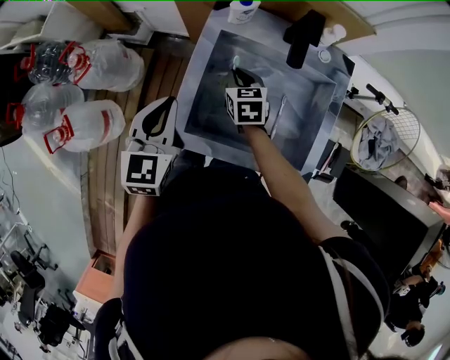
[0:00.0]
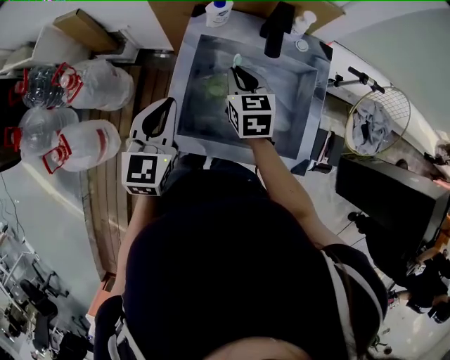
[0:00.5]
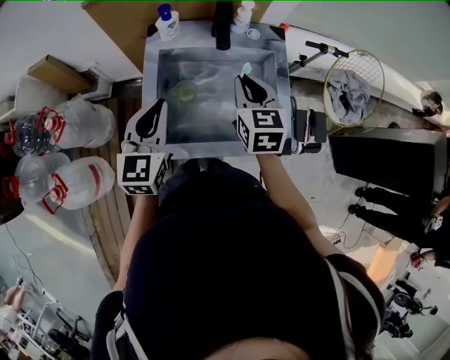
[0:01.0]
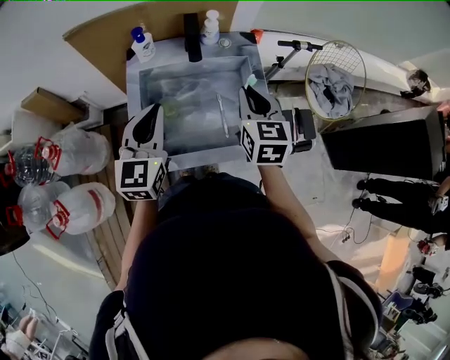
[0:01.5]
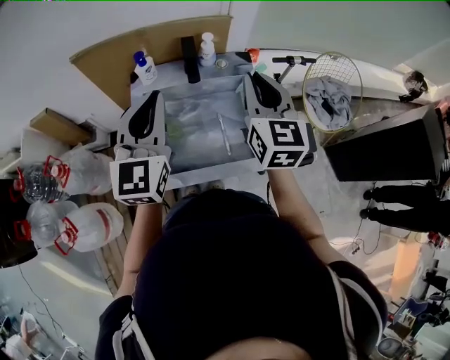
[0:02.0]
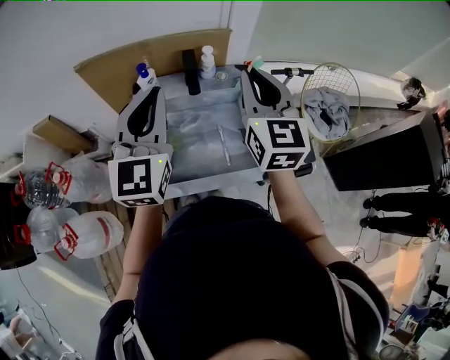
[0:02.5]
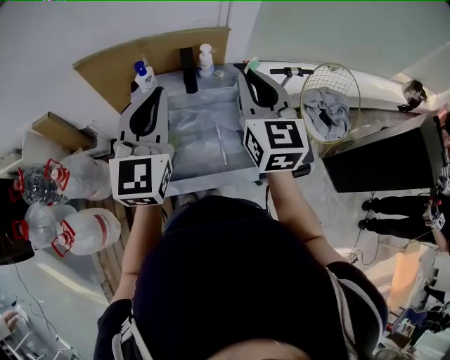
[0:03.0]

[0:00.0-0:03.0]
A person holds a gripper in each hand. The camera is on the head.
0:00.0 to 0:01.5: The left gripper shifts by roughly 15 cm, and rotates approximately 20 degrees; the right gripper shifts by about 30 cm, and changes its angle by approximately 30 degrees.
0:01.5 to 0:03.0: The two grippers go approximately 15 cm upward. The right gripper rotates about 20 degrees.

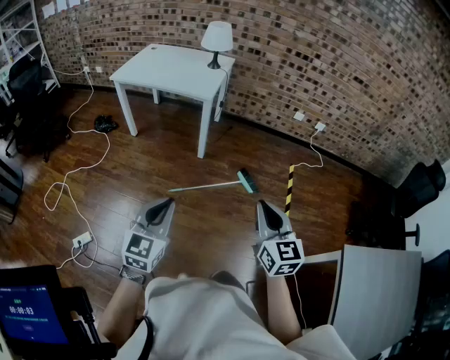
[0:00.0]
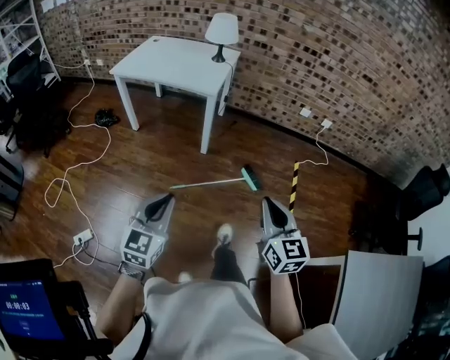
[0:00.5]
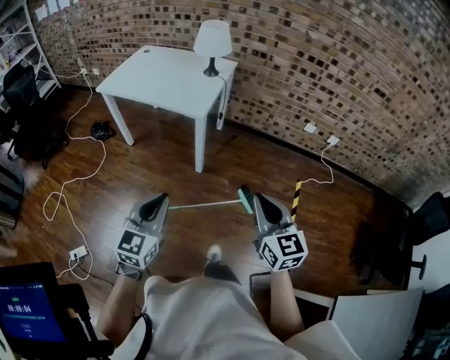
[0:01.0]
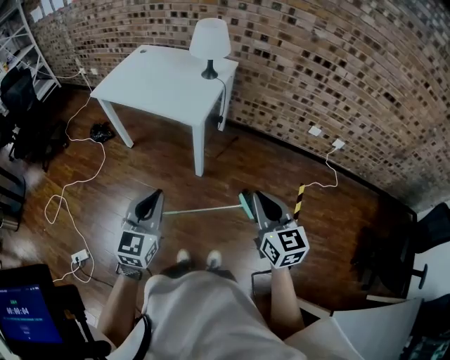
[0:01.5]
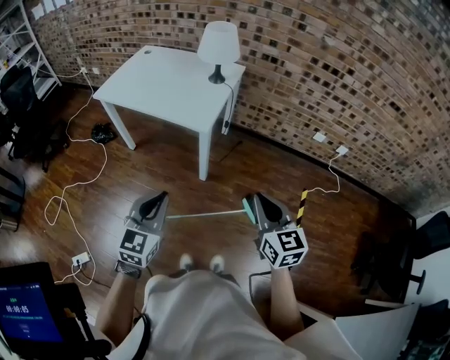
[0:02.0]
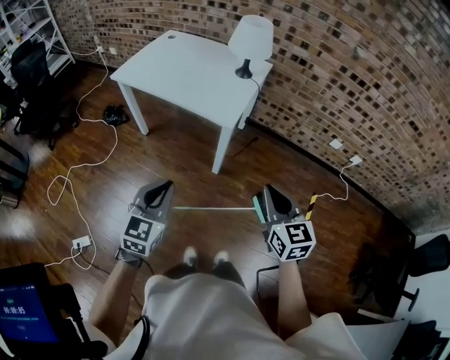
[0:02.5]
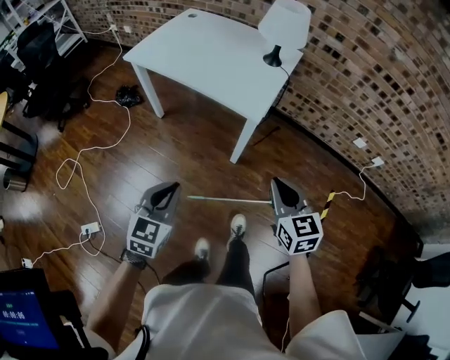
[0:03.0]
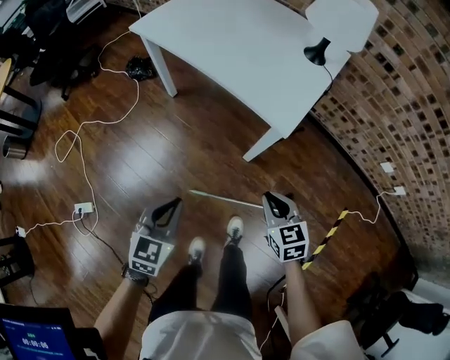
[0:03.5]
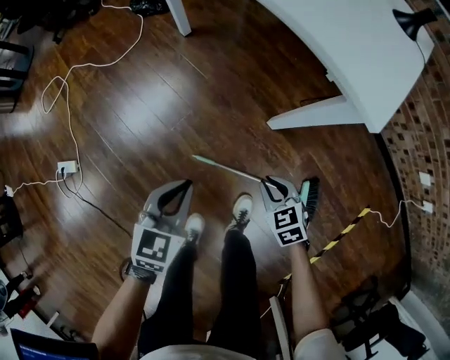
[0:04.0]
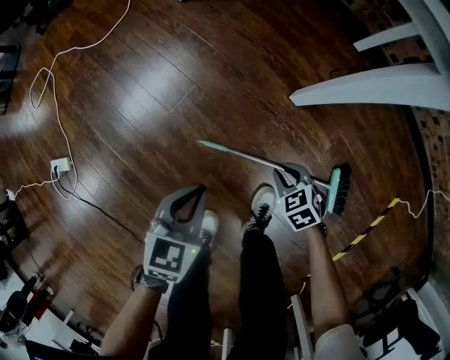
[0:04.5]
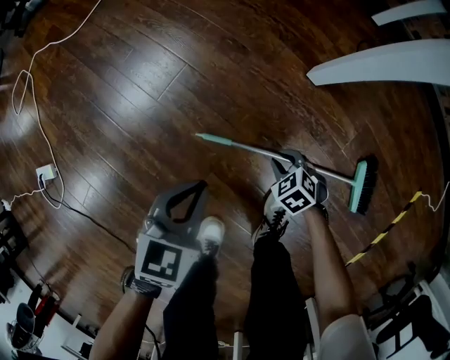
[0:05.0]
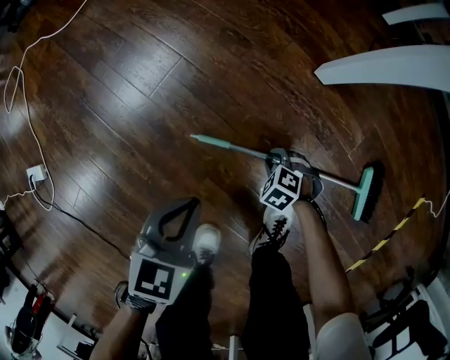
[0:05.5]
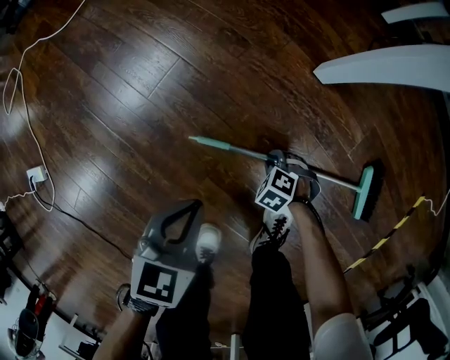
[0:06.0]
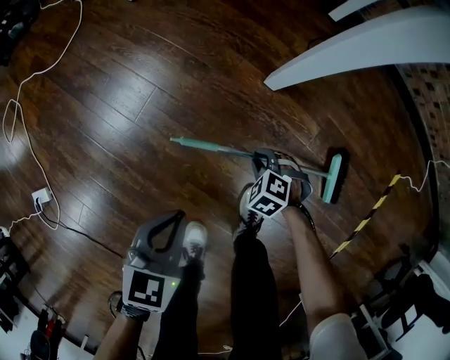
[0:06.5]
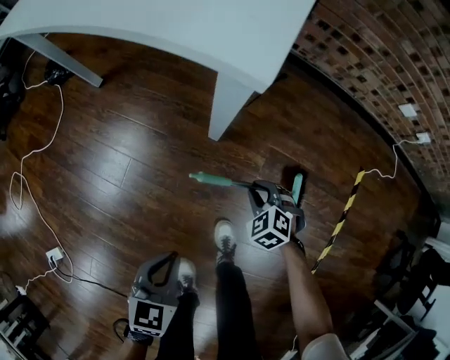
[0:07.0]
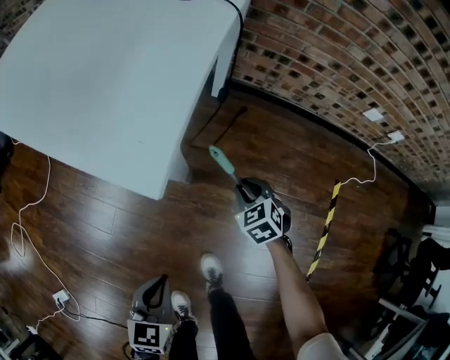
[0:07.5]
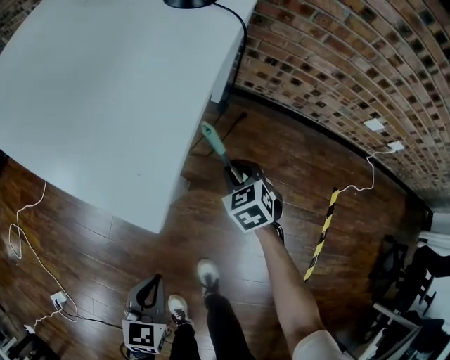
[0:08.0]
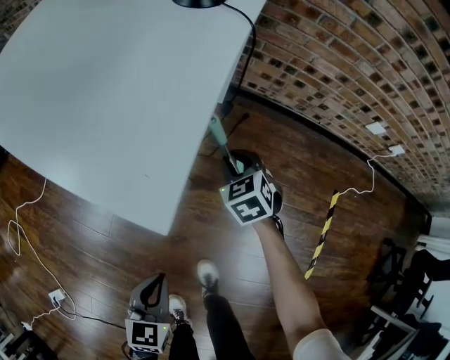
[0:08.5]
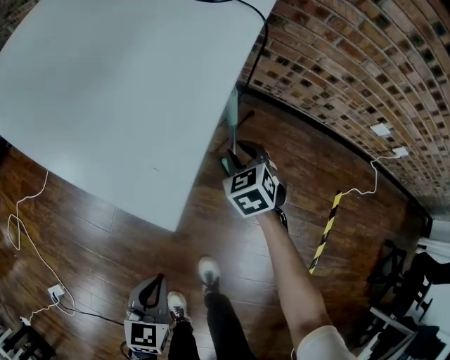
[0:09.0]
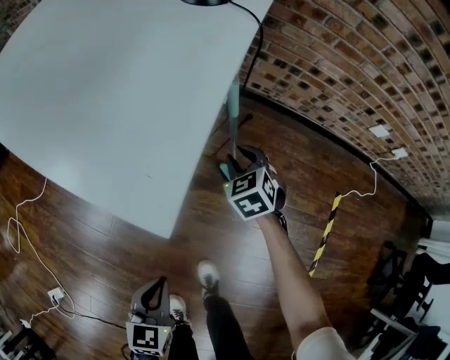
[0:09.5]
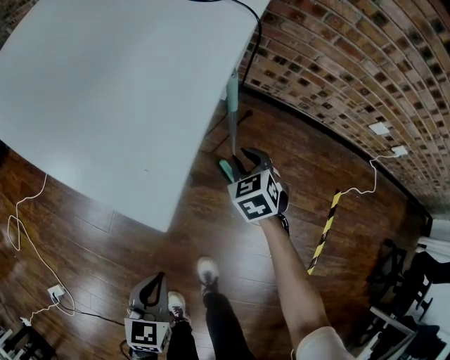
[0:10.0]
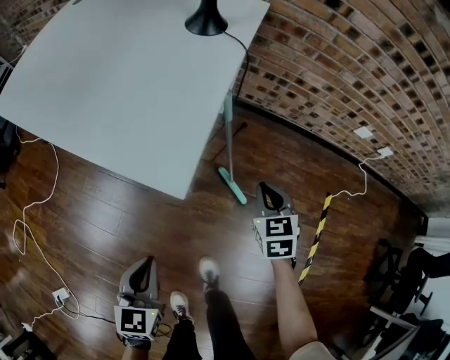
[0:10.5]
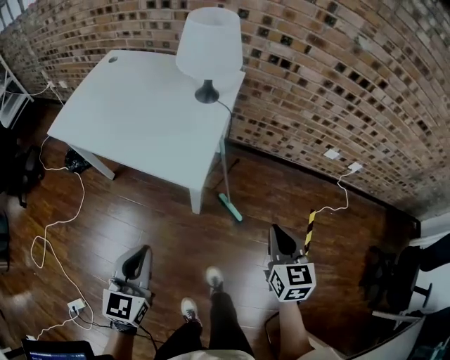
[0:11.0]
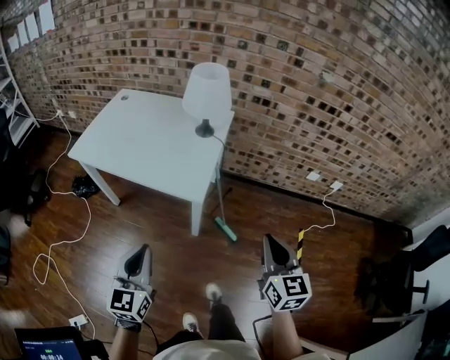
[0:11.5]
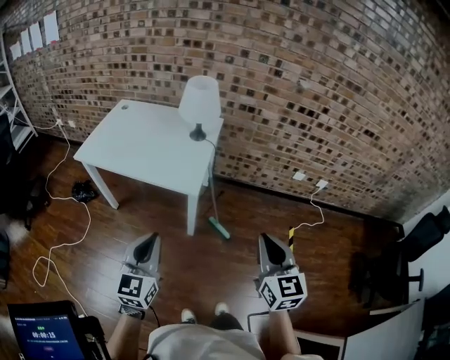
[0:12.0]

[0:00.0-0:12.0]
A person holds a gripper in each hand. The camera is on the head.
0:00.0 to 0:02.0: The two grippers go roughly 35 cm forward.
0:02.0 to 0:04.0: Both grippers move downward, about 50 cm. The left gripper rotates approximately 30 degrees, while the right gripper tips its fingers downward by approximately 40 degrees.
0:04.0 to 0:06.0: Both grippers move downward, roughly 40 cm. The right gripper tips its fingers downward by some 30 degrees.
0:06.0 to 0:08.0: The right gripper travels upward by roughly 50 cm, and points its fingers approximately 30 degrees further upward. The left gripper travels upward by about 30 cm.
0:08.0 to 0:10.0: There are only small adjustments of the grippers.
0:10.0 to 0:12.0: The left gripper moves upward, approximately 50 cm, and angles its fingers upward, by some 40 degrees, while the right gripper moves upward and backward, approximately 80 cm, tips its fingers upward by roughly 40 degrees, and closes up.

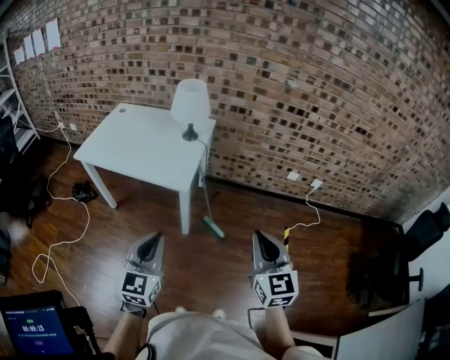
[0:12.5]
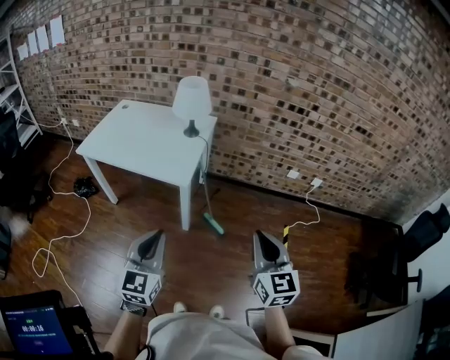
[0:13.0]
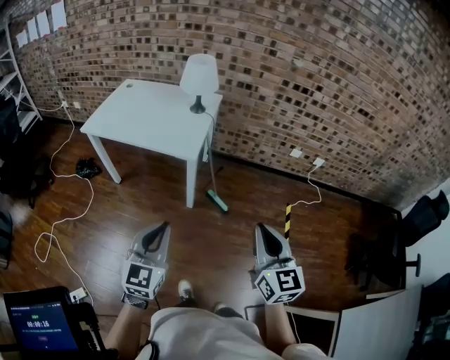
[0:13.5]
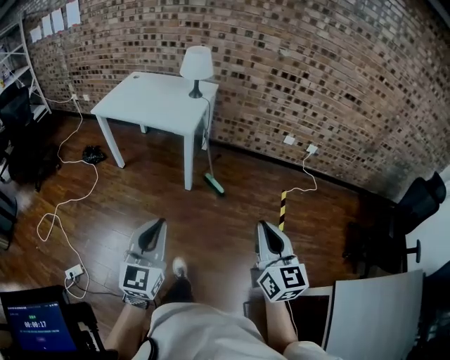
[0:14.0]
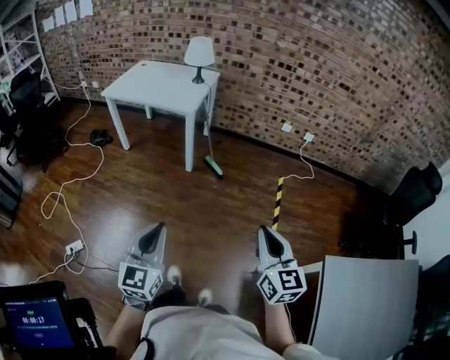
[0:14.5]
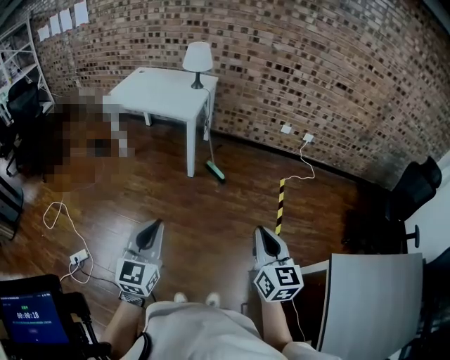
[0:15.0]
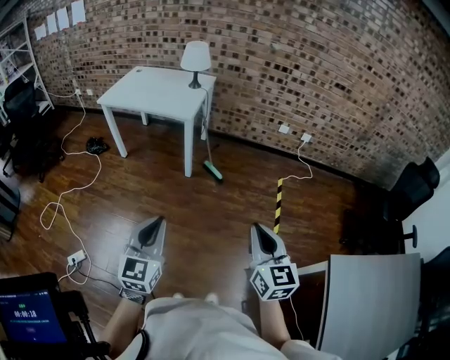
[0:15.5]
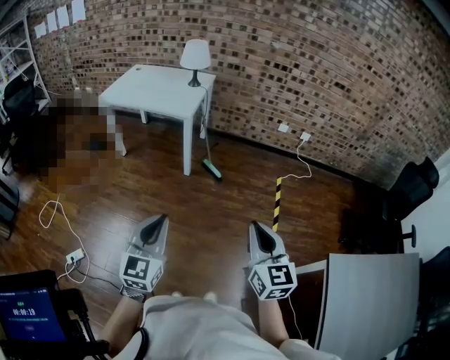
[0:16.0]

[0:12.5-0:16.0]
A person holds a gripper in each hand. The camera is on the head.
0:12.5 to 0:14.5: Both grippers are carried backward, about 50 cm.
0:14.5 to 0:16.0: The right gripper goes some 5 cm to the left; the left gripper moves some 5 cm.

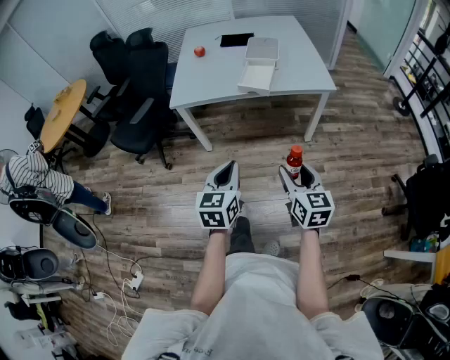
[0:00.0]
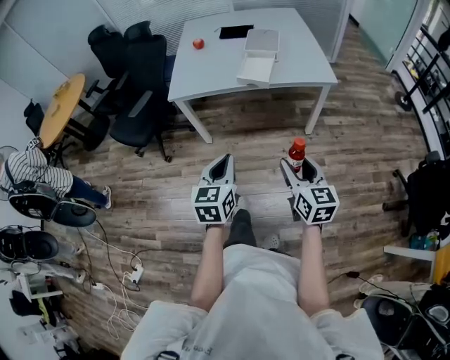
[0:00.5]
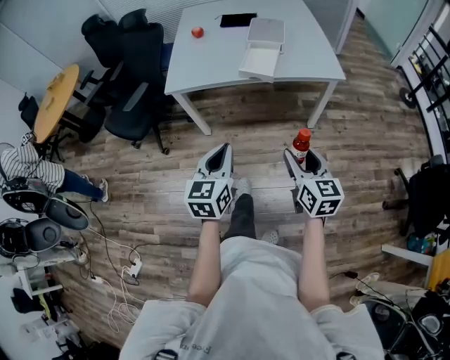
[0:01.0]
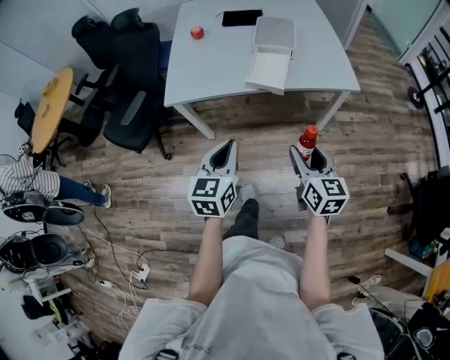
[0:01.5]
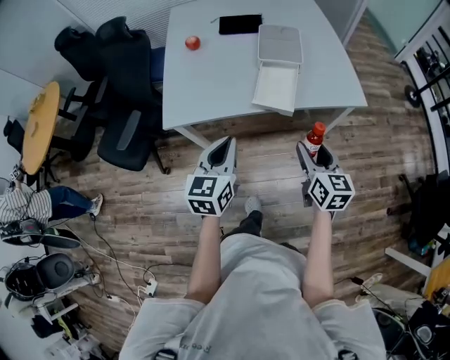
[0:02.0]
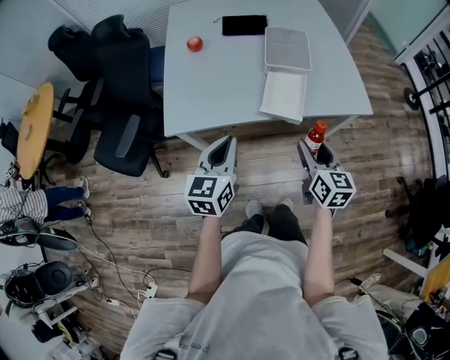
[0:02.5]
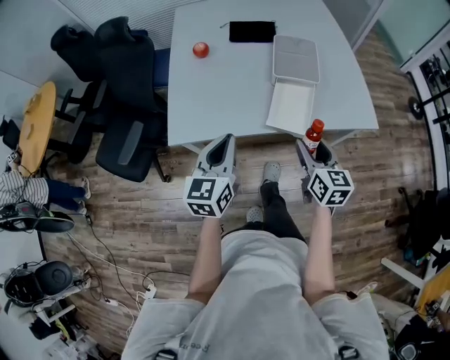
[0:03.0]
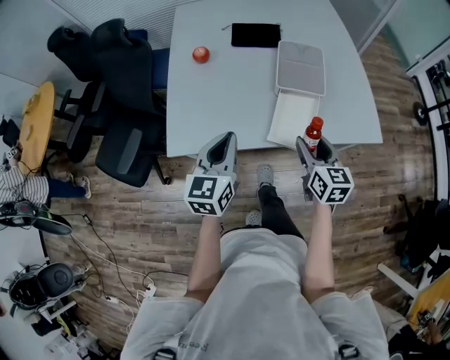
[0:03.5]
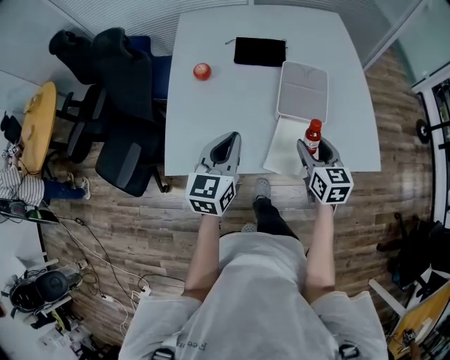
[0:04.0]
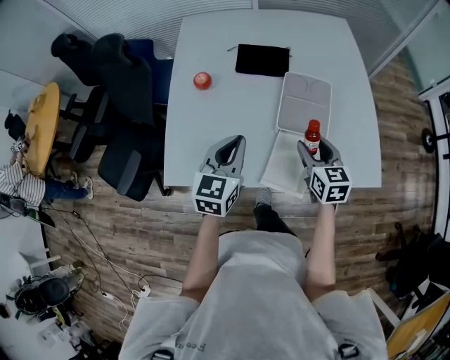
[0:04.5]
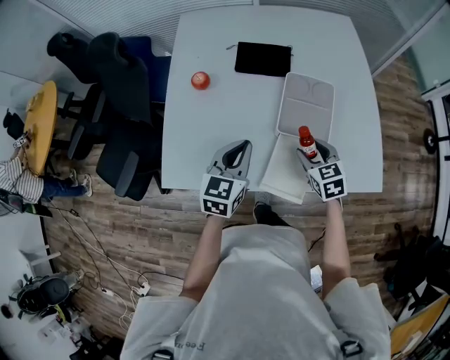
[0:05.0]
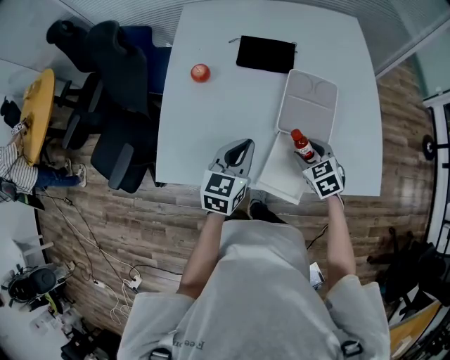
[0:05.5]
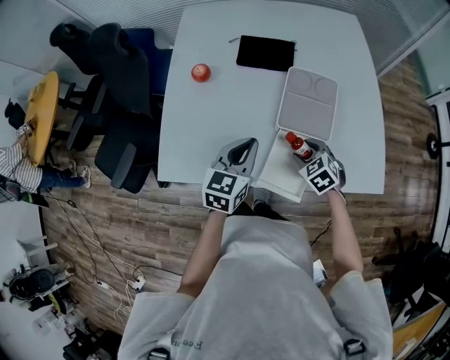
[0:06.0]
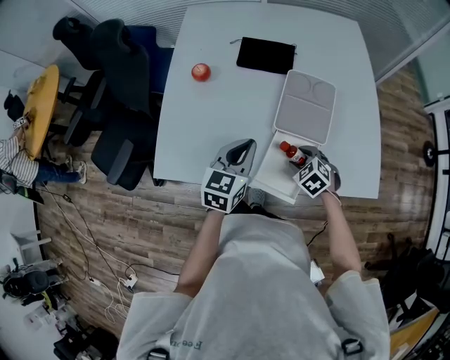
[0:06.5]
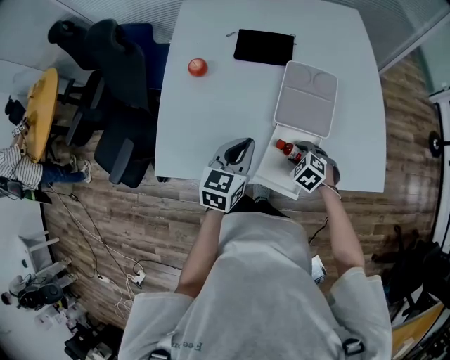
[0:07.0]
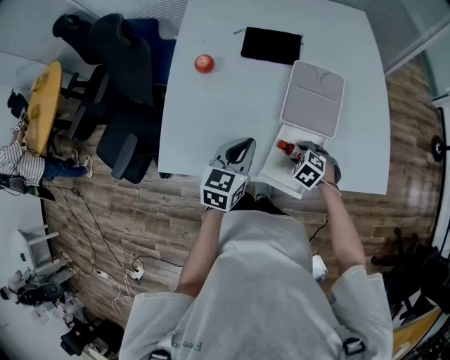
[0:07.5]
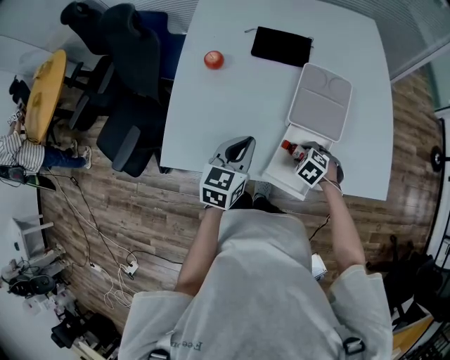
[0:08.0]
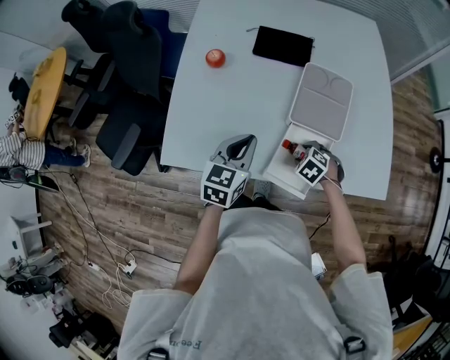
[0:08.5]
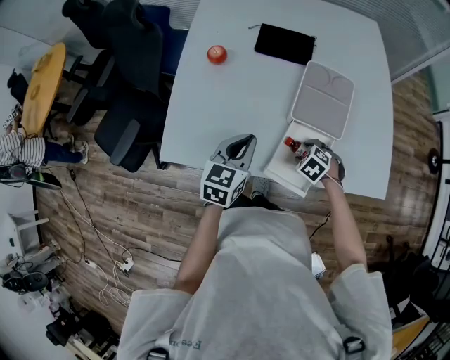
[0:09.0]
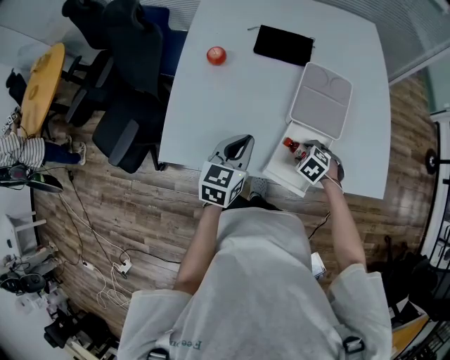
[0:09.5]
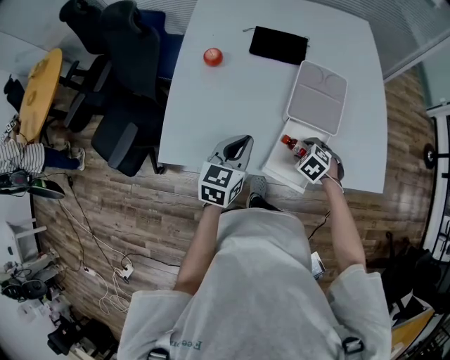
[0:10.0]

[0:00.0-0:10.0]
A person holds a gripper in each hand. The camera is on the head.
0:00.0 to 0:02.0: Both grippers travel together forward, roughly 30 cm.
0:02.0 to 0:04.0: The two grippers go approximately 25 cm forward.
0:04.0 to 0:06.0: The left gripper travels downward, to the right and forward by about 10 cm. Meanwhile the right gripper moves downward and forward, some 15 cm, and swivels about 50 degrees.
0:06.0 to 0:08.0: The right gripper is displaced downward by roughly 5 cm, and turns by roughly 20 degrees.
0:08.0 to 0:10.0: The grippers make only small movements.
